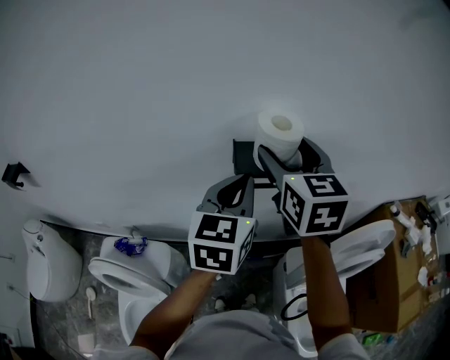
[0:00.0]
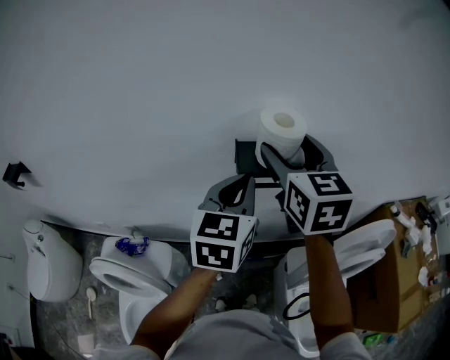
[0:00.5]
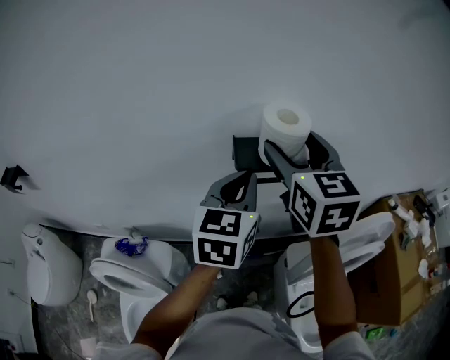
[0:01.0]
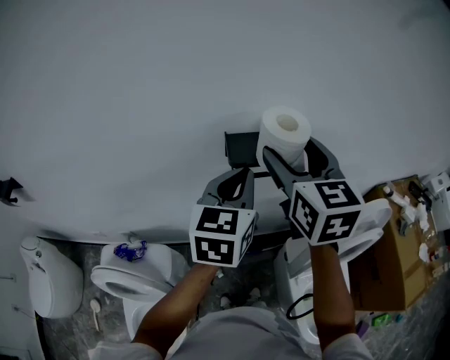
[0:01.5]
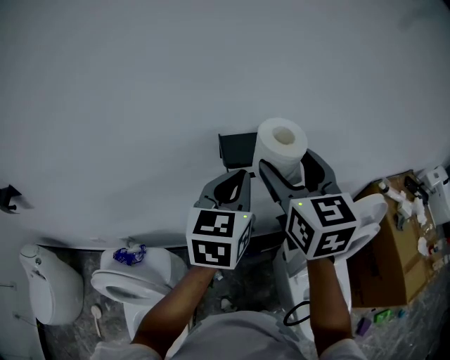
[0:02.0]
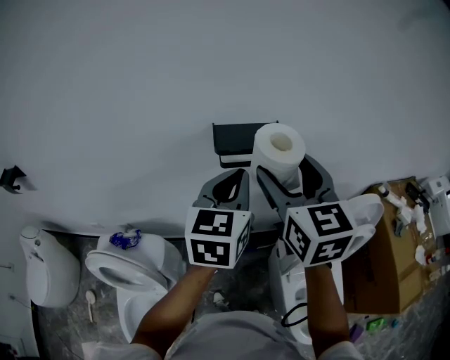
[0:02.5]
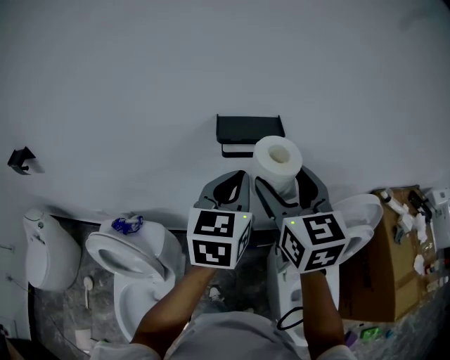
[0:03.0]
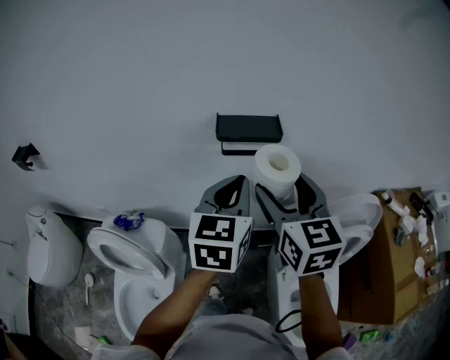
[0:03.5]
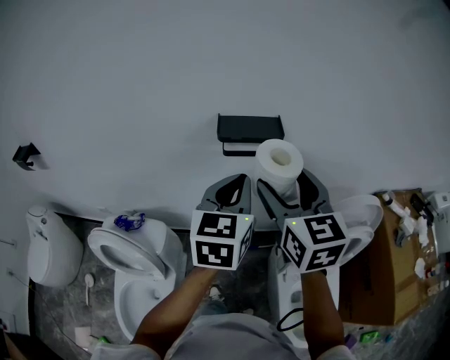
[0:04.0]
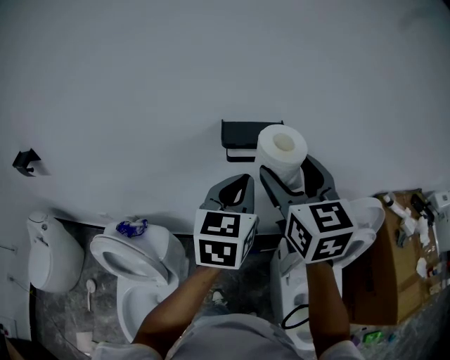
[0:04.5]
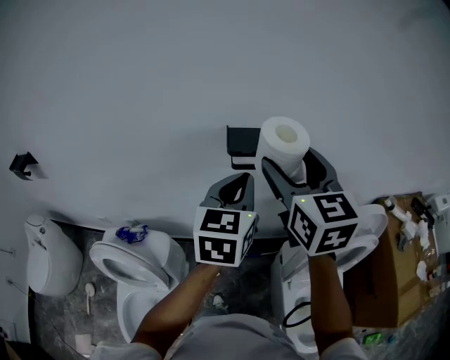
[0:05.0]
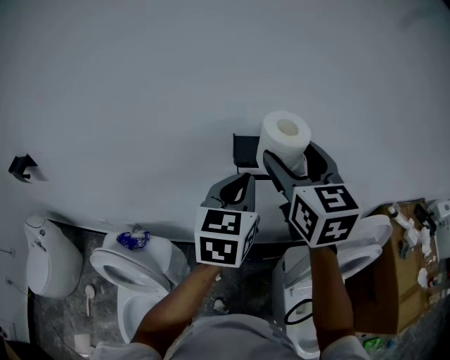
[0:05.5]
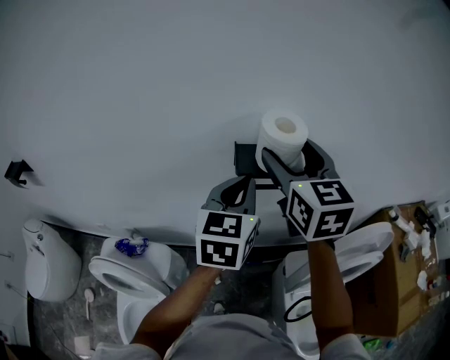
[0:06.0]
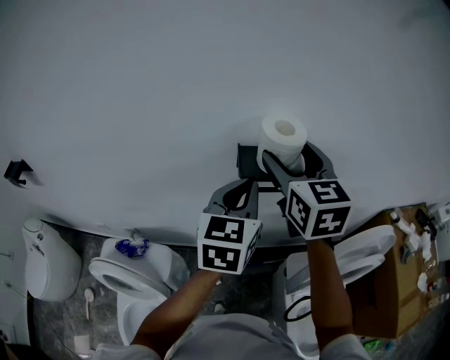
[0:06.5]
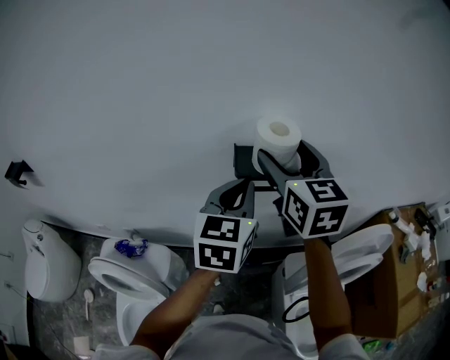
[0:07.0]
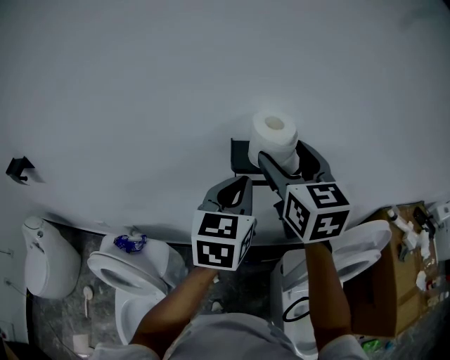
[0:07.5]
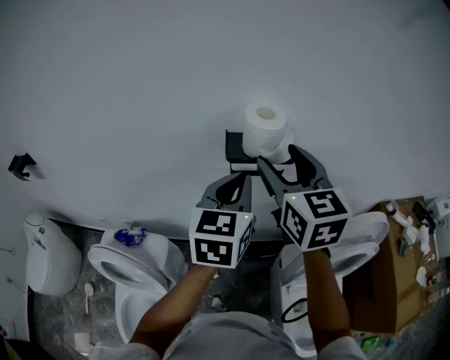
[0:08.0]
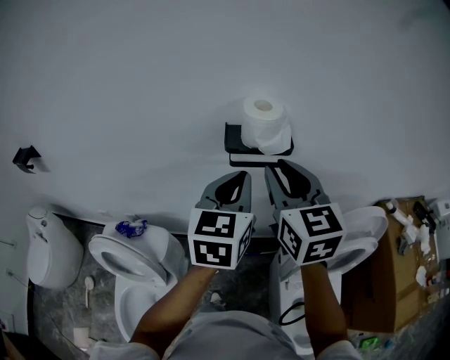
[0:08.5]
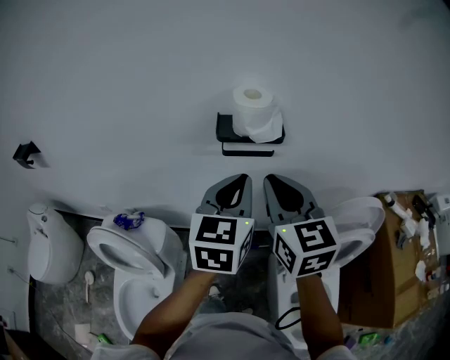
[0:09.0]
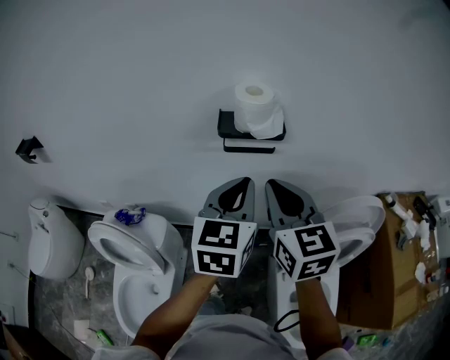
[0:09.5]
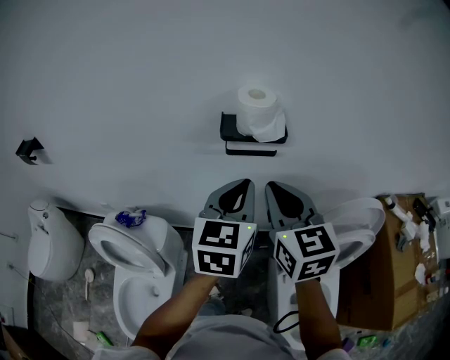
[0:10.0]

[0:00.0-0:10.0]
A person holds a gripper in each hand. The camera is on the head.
0:00.0 to 0:02.0: The right gripper moves backward, approximately 5 cm.
0:02.0 to 0:04.0: Both grippers move backward, some 10 cm.
0:04.0 to 0:06.0: Both grippers travel together forward, roughly 10 cm.
0:06.0 to 0:08.0: The right gripper is displaced backward by some 5 cm.
0:08.0 to 0:10.0: The left gripper shifts roughly 10 cm backward; the right gripper shifts roughly 10 cm backward and downward, and closes.

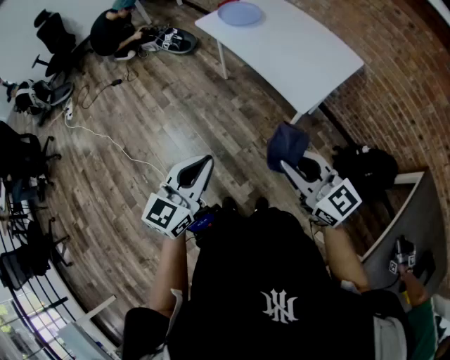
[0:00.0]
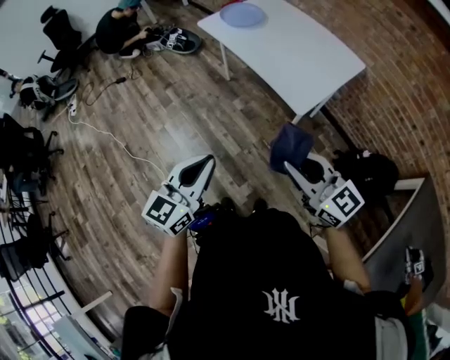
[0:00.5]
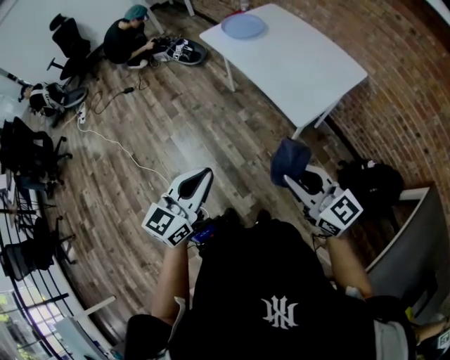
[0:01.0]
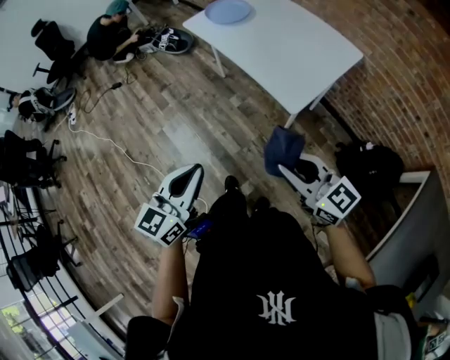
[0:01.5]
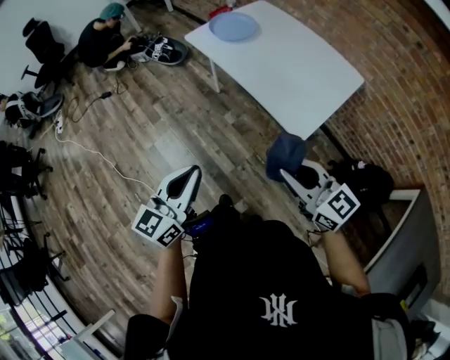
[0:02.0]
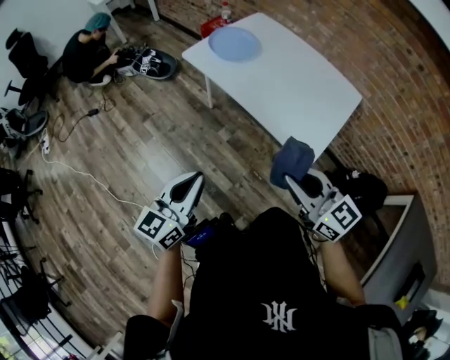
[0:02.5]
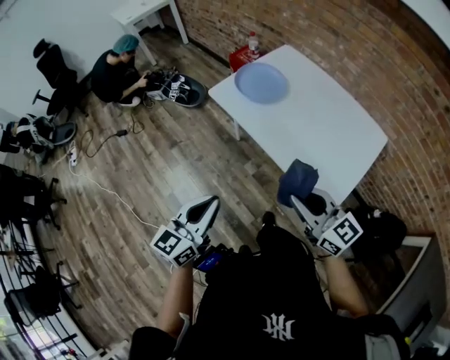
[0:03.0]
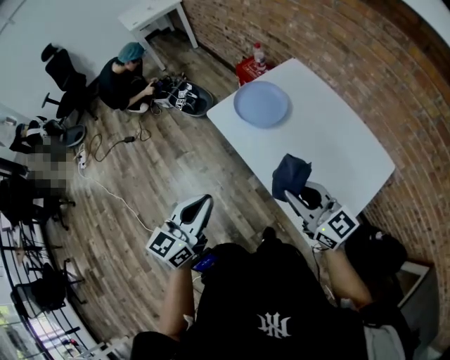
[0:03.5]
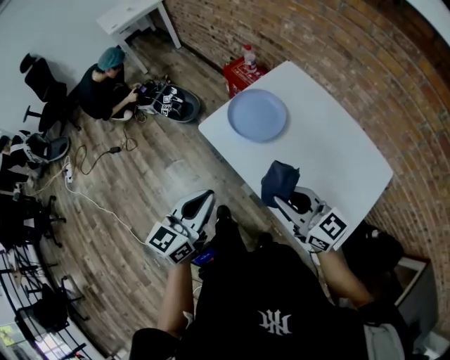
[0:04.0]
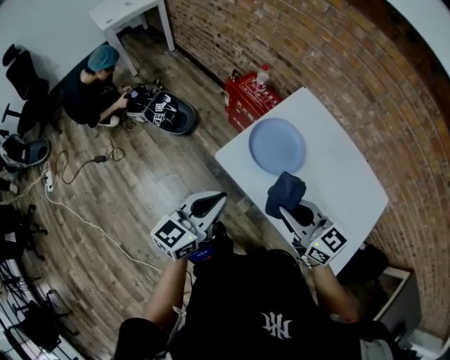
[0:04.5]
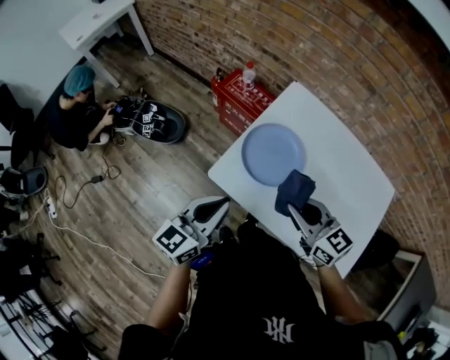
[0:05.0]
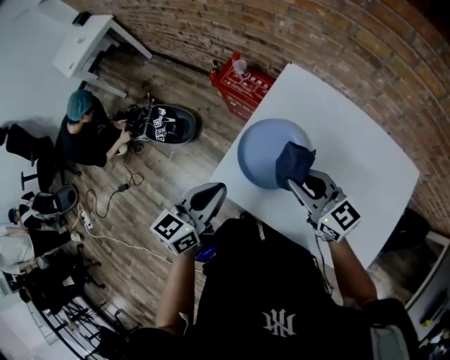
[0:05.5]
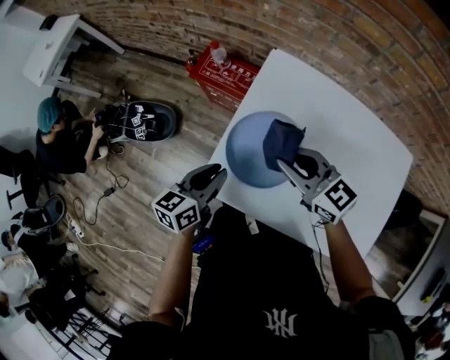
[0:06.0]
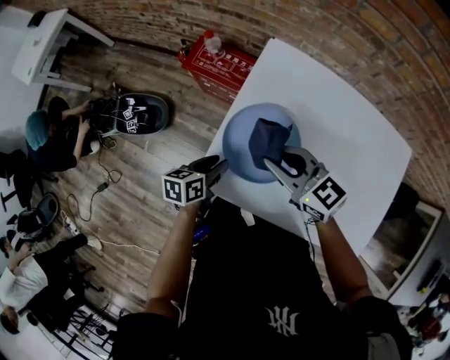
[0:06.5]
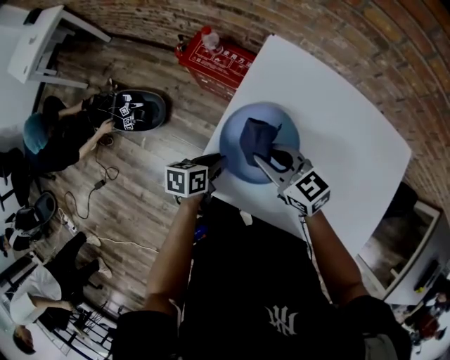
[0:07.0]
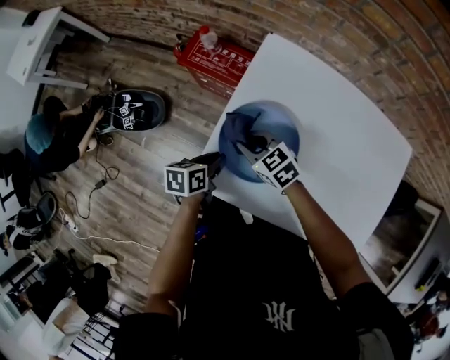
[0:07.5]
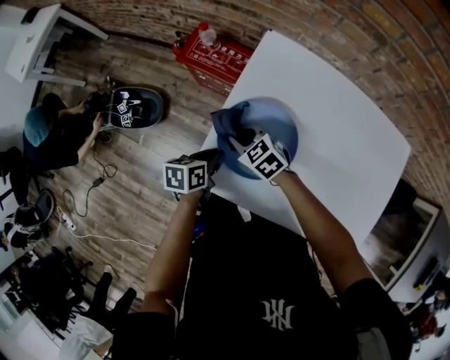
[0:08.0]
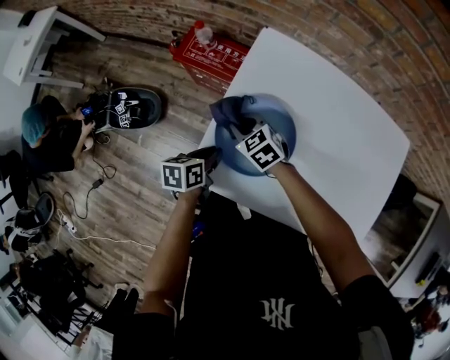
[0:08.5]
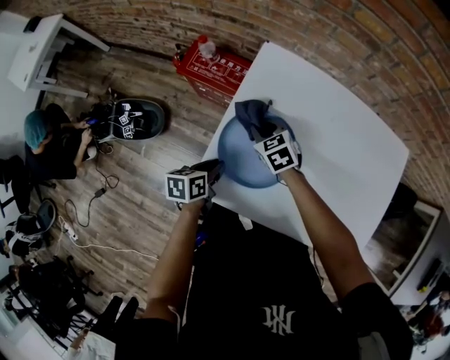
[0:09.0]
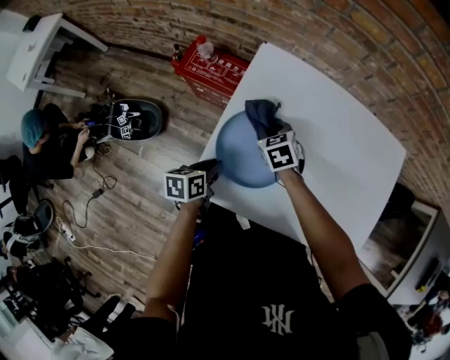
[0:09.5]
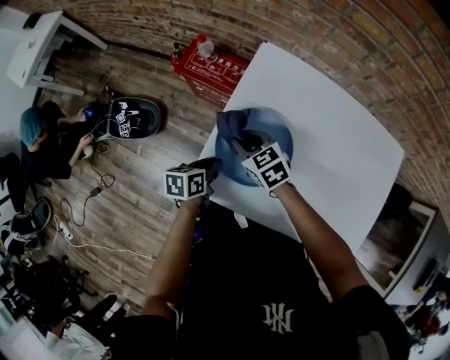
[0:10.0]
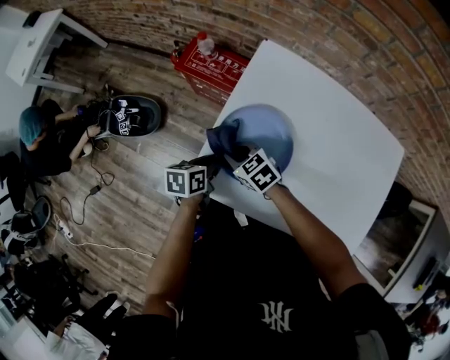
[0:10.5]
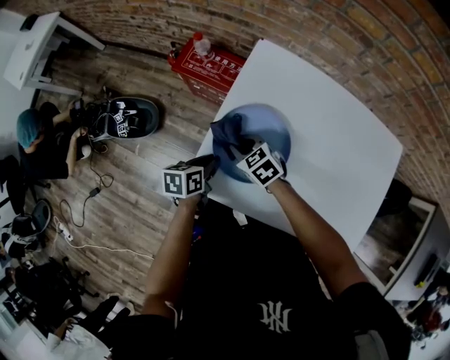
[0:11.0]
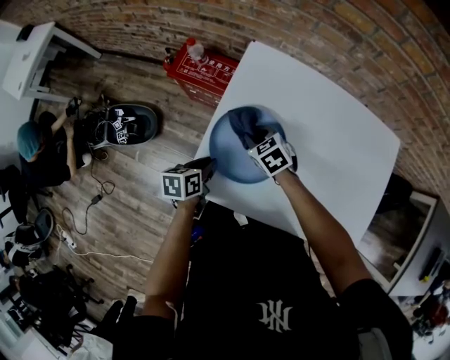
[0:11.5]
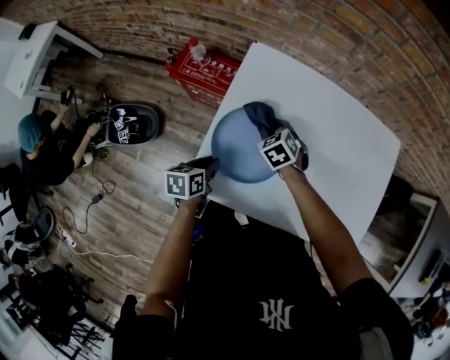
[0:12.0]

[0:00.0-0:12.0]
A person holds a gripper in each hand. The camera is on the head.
0:00.0 to 0:02.0: The grippers both shift forward by some 10 cm.
0:02.0 to 0:04.0: The pair of grippers is taken forward, some 40 cm.
0:04.0 to 0:06.0: The left gripper is displaced forward and downward by some 35 cm, and rotates approximately 30 degrees. Meanwhile the right gripper moves forward, some 30 cm, and swivels approximately 20 degrees.
0:06.0 to 0:08.0: The right gripper is displaced downward and to the left by approximately 20 cm, and swivels some 30 degrees, while the left gripper is displaced downward by approximately 15 cm, and turns by approximately 30 degrees.
0:08.0 to 0:10.0: The right gripper travels to the right and back again, approximately 10 cm each way.
0:10.0 to 0:12.0: The right gripper is displaced to the right by some 10 cm, and changes its angle by some 30 degrees.

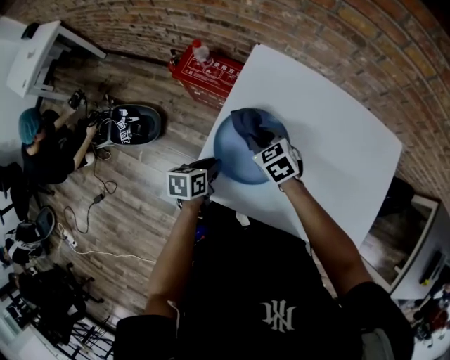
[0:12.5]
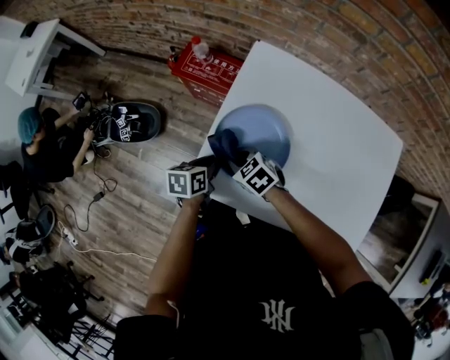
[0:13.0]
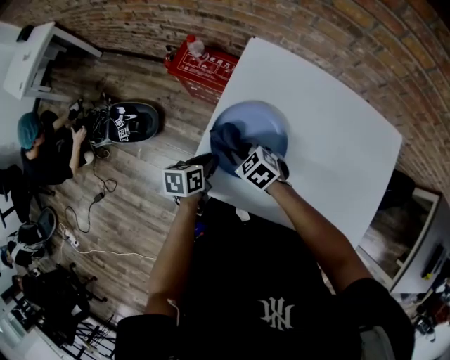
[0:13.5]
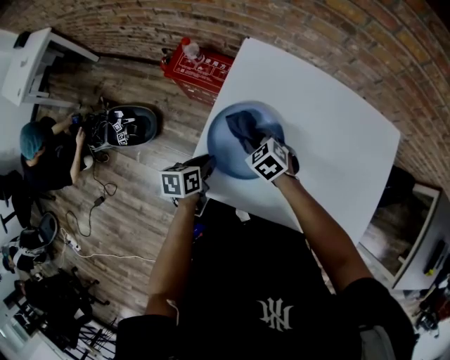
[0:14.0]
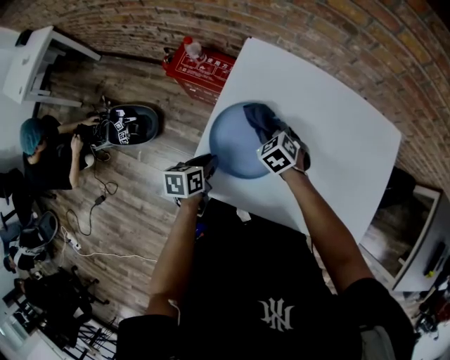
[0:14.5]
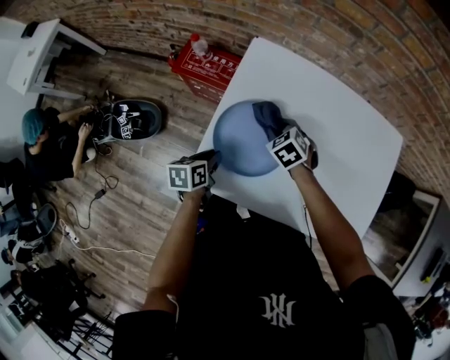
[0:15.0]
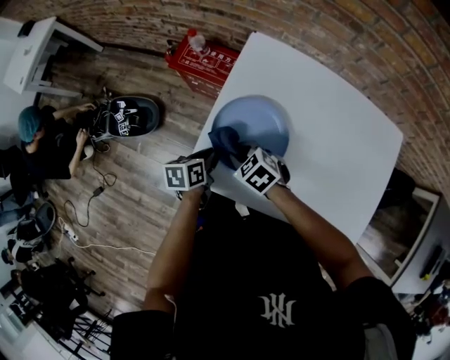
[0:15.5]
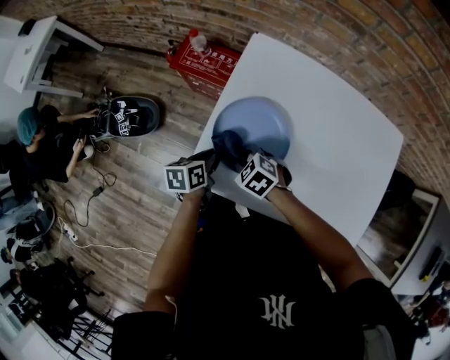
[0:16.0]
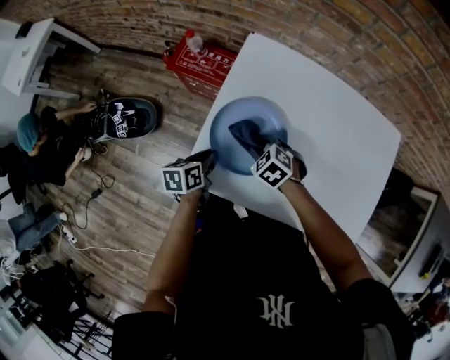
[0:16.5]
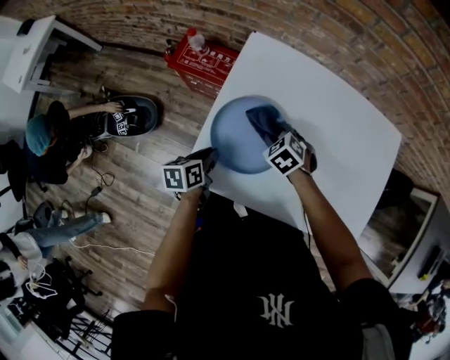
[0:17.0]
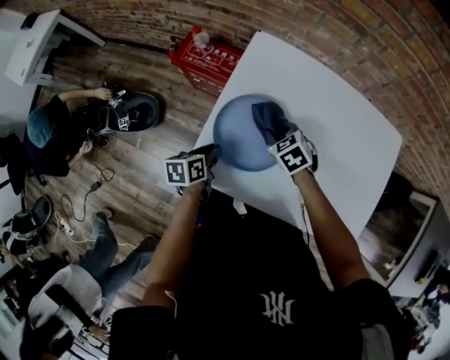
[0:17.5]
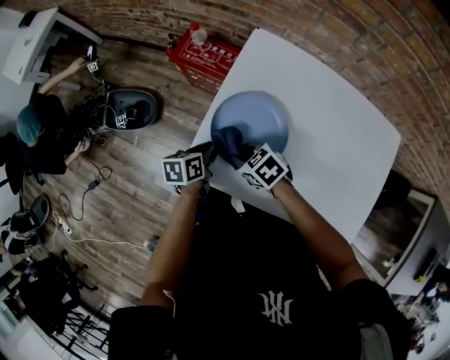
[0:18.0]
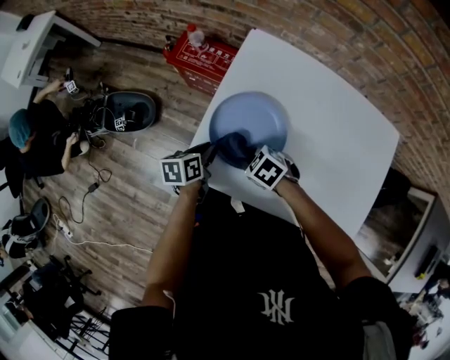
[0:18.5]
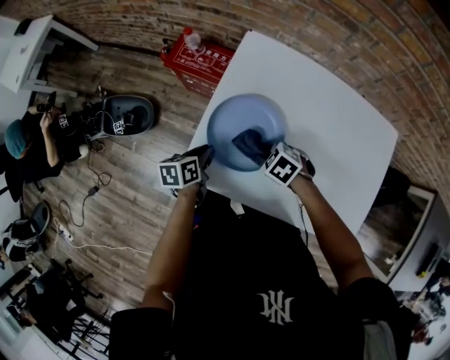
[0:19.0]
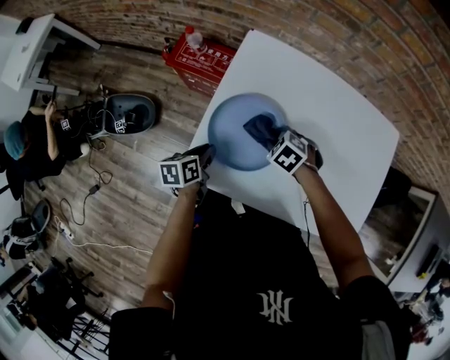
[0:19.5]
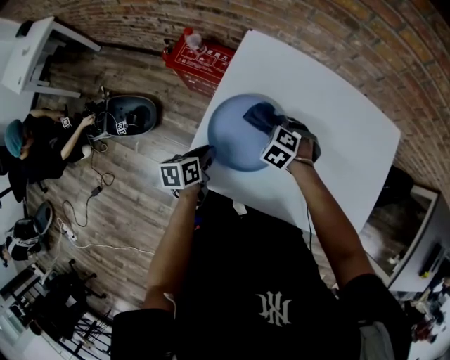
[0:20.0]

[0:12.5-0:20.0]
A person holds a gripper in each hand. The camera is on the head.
0:12.5 to 0:14.5: The right gripper goes approximately 5 cm to the right.
0:14.5 to 0:16.5: The right gripper goes roughly 5 cm backward, and reaches some 10 cm to the left, then returns.
0:16.5 to 0:18.0: The right gripper heads to the left and backward, covering approximately 10 cm, and changes its angle by approximately 20 degrees.
0:18.0 to 0:20.0: The right gripper shifts by roughly 15 cm, and swivels about 40 degrees.
